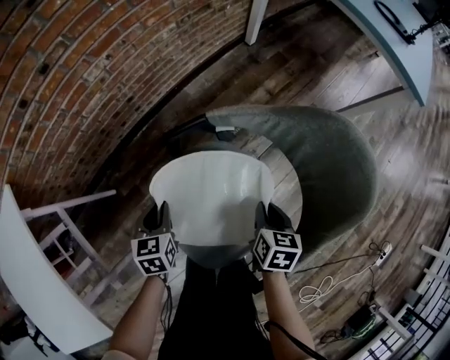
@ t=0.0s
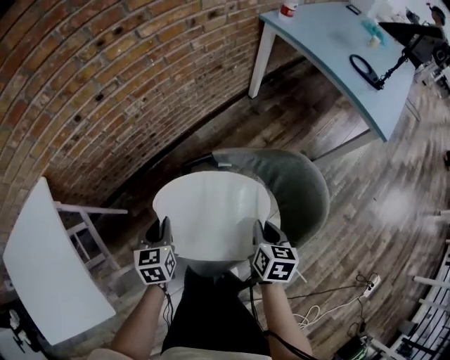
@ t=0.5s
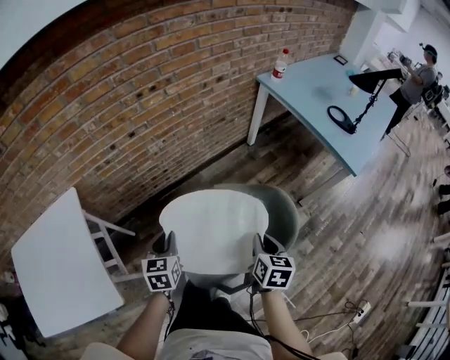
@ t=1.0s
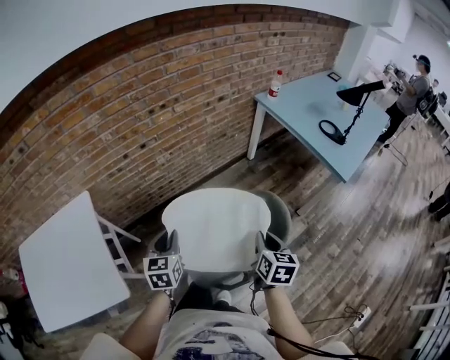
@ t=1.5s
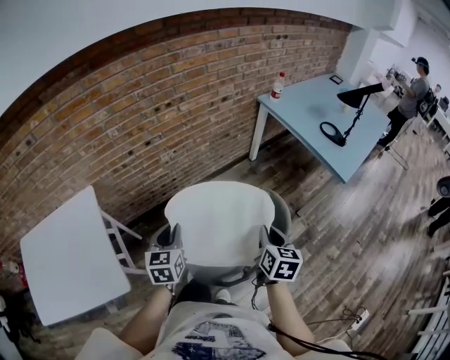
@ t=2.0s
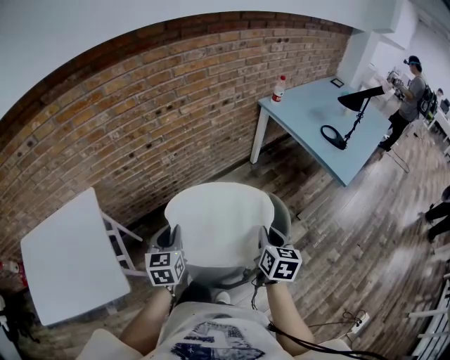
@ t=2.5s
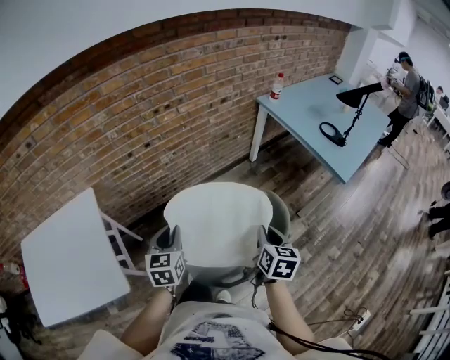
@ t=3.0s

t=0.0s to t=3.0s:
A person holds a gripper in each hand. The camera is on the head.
t=0.0s to t=1.5s: The two grippers go about 40 cm upward. The right gripper swivels roughly 20 degrees. Meanwhile the left gripper swivels some 20 degrees.
t=1.5s to t=3.0s: The grippers stay close to where they were, moving slightly.

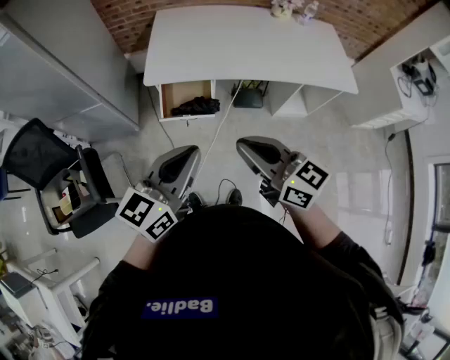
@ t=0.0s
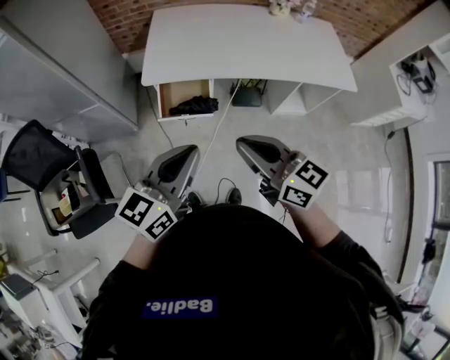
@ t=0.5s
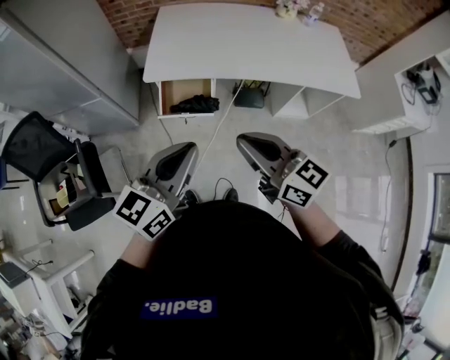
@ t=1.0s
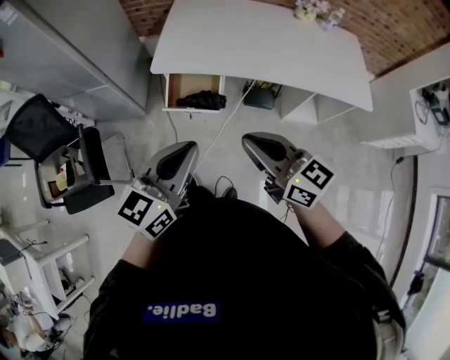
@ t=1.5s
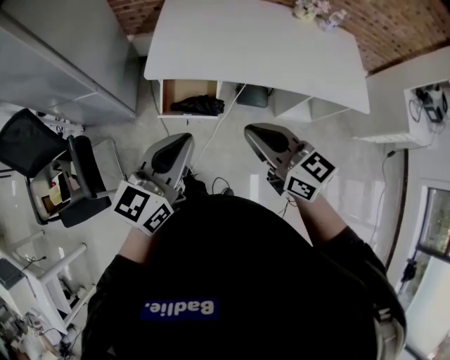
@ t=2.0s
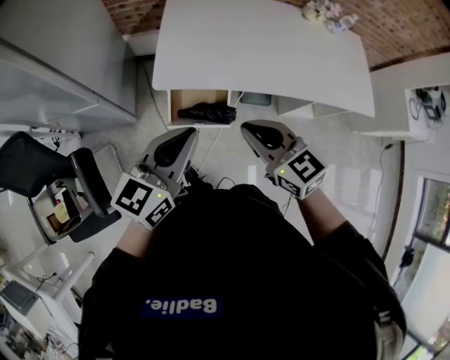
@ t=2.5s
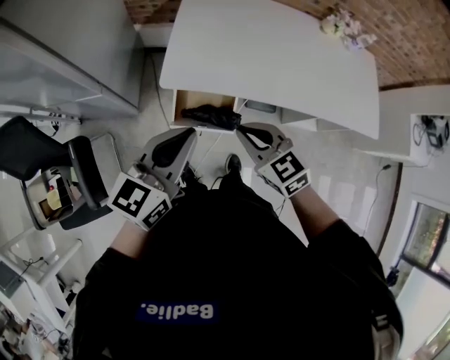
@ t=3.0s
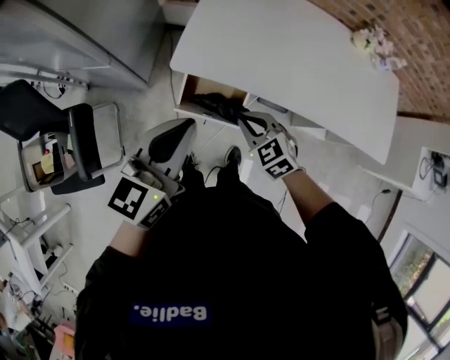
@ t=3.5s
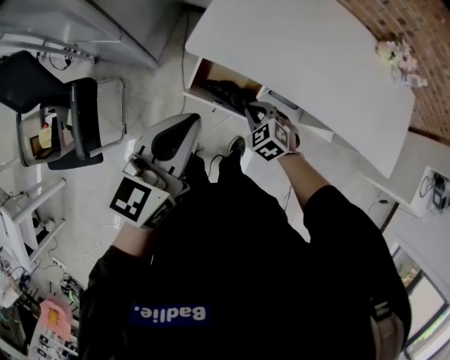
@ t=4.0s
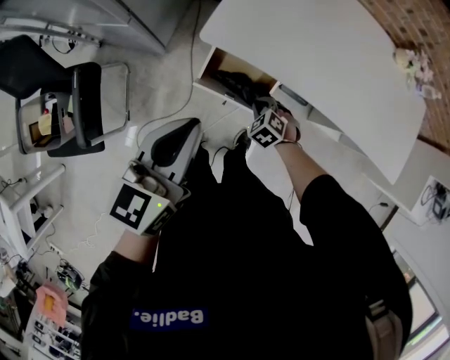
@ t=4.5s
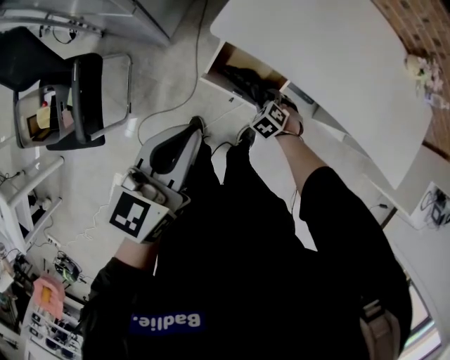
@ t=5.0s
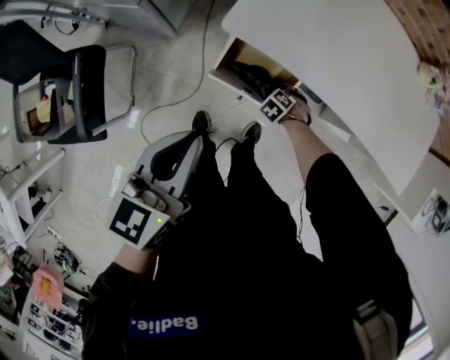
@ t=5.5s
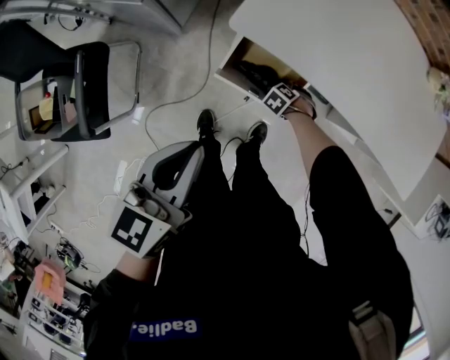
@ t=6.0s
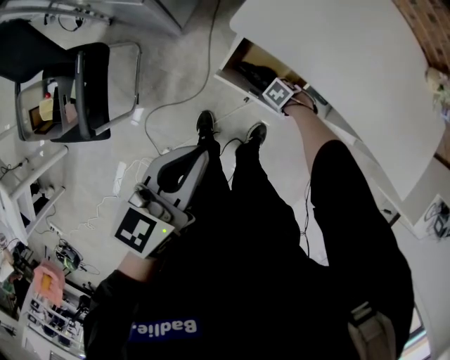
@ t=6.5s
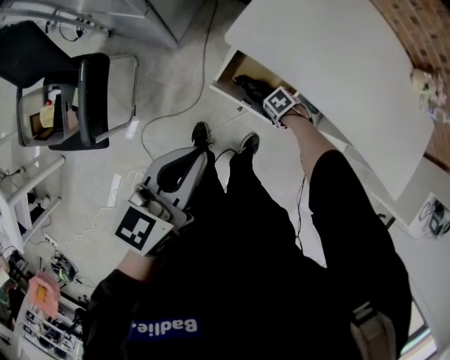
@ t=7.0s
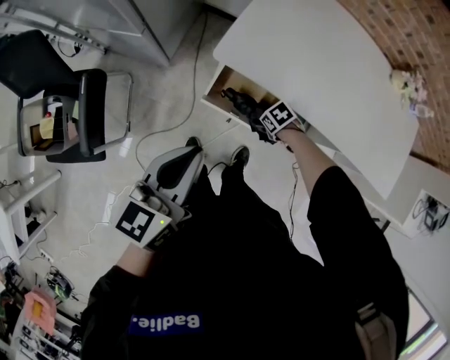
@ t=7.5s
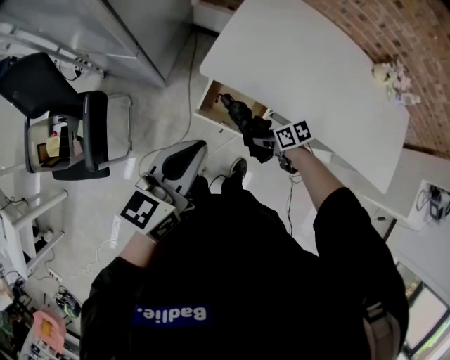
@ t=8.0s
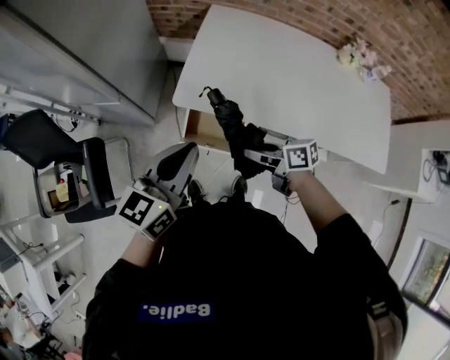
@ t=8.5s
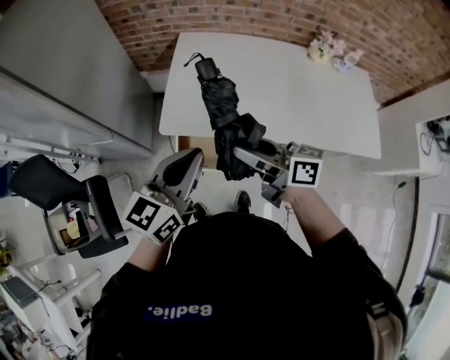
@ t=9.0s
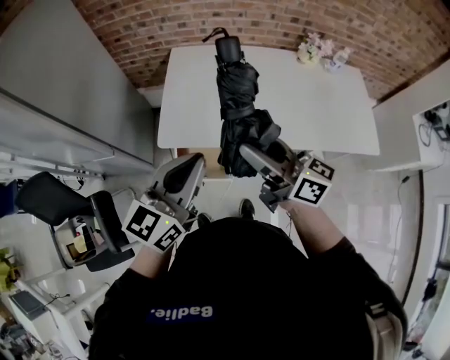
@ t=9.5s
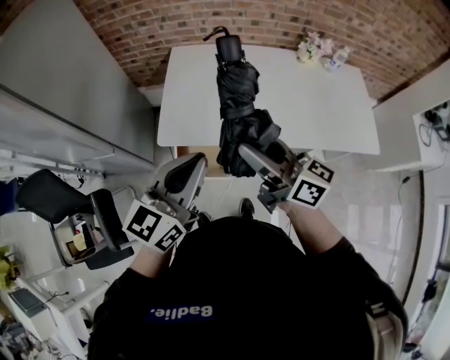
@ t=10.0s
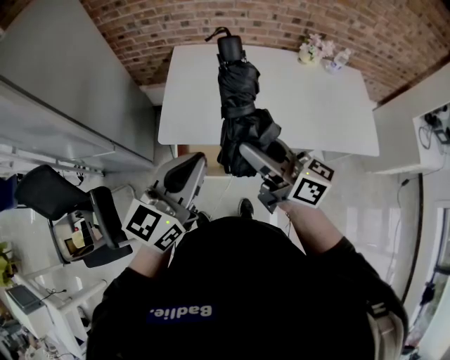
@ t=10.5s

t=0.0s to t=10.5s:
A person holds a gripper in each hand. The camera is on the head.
t=0.0s to t=2.0s: Both grippers travel together forward, roughly 10 cm.
t=2.0s to t=4.0s: The right gripper is displaced downward and forward by some 35 cm, and points its fingers about 50 degrees further downward. The left gripper moves forward and to the left, roughly 15 cm.
t=4.0s to t=6.5s: The right gripper shifts roughly 25 cm downward, changes its angle by some 40 degrees, and opens its fingers, while the left gripper is displaced downward by approximately 10 cm.
t=6.5s to t=8.5s: The right gripper is displaced upward by approximately 40 cm, and tilts its fingers approximately 60 degrees upward. The left gripper moves upward, roughly 15 cm, and swivels roughly 20 degrees.
t=8.5s to t=10.5s: The right gripper travels upward by roughly 25 cm, and points its fingers some 30 degrees further upward. The left gripper travels to the right and upward by some 15 cm.

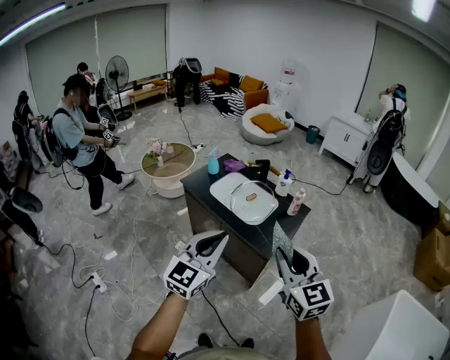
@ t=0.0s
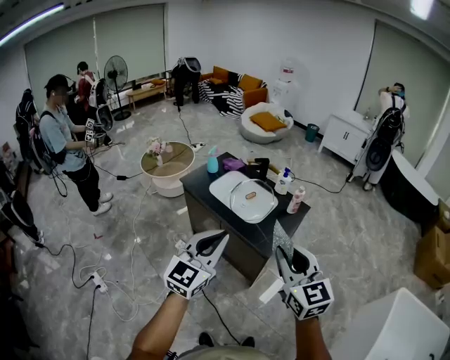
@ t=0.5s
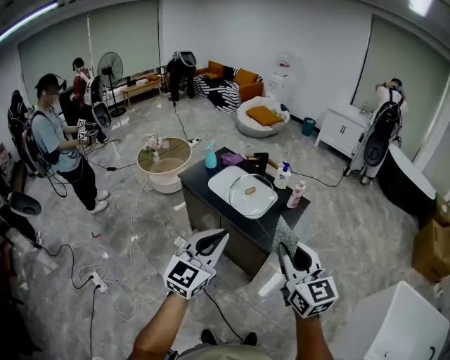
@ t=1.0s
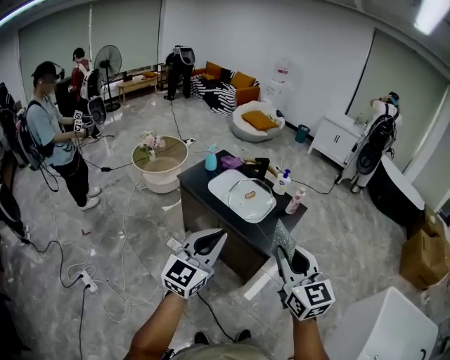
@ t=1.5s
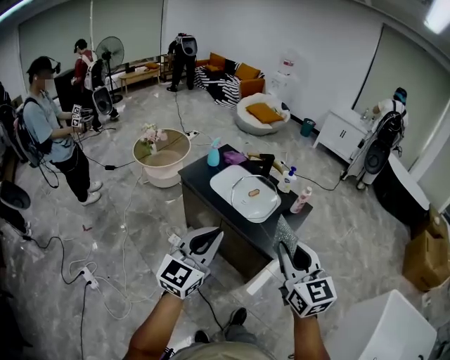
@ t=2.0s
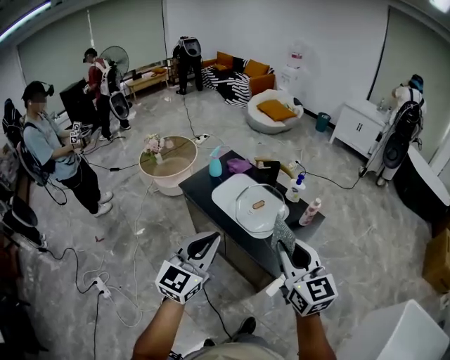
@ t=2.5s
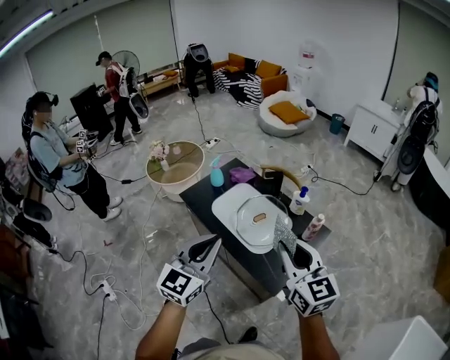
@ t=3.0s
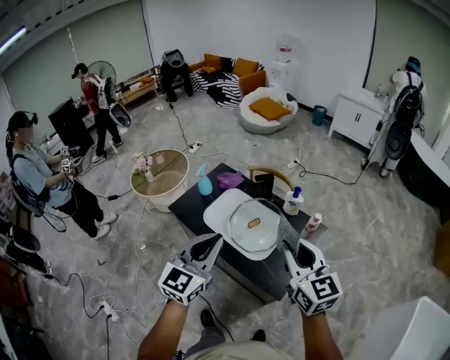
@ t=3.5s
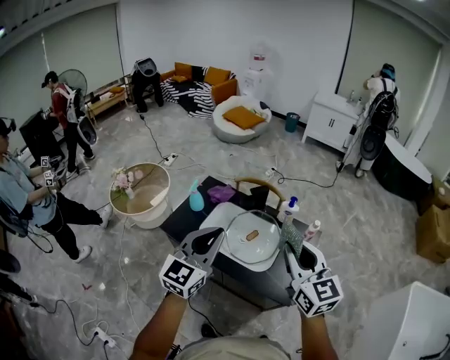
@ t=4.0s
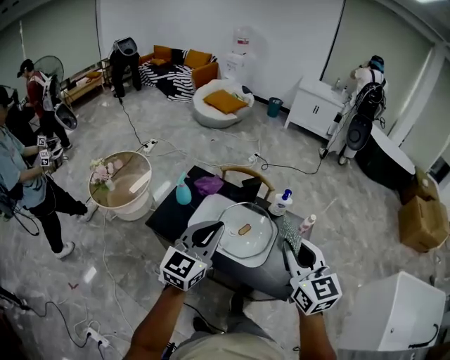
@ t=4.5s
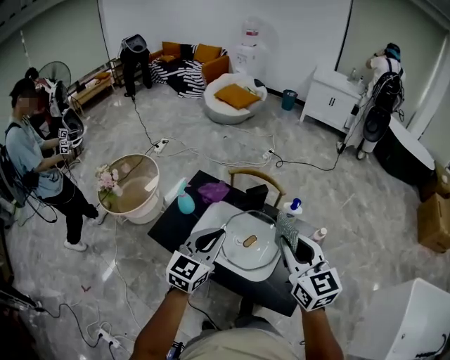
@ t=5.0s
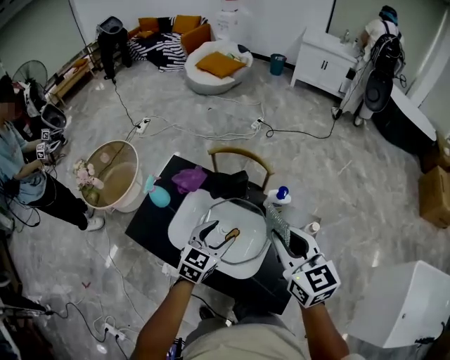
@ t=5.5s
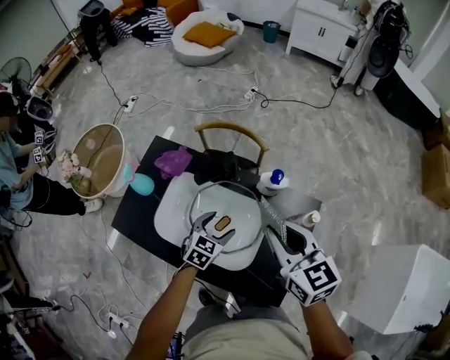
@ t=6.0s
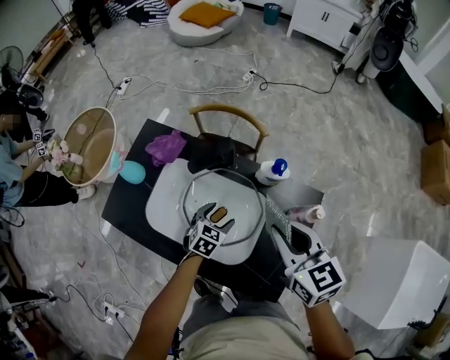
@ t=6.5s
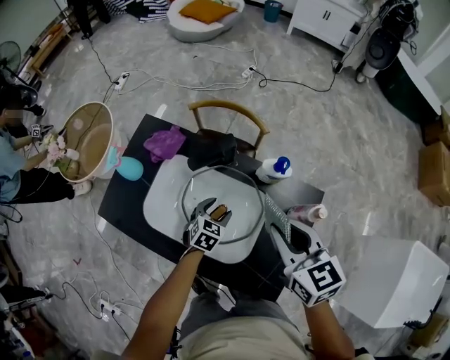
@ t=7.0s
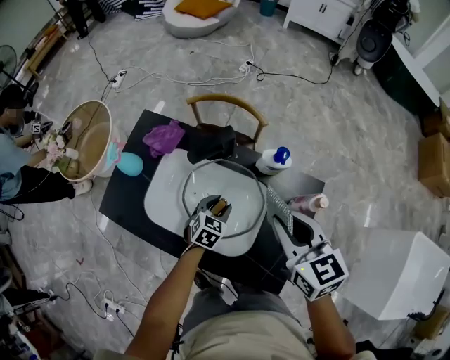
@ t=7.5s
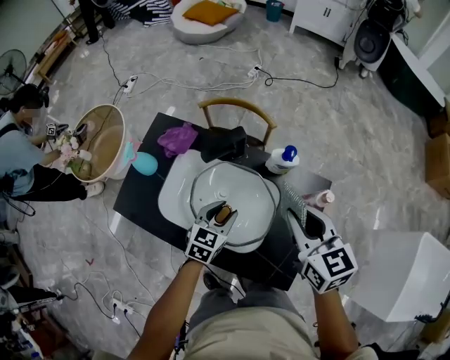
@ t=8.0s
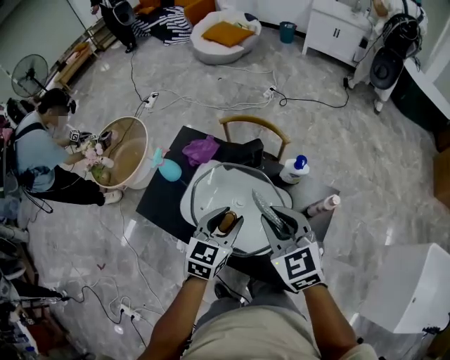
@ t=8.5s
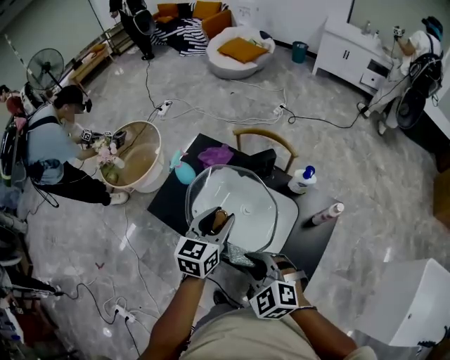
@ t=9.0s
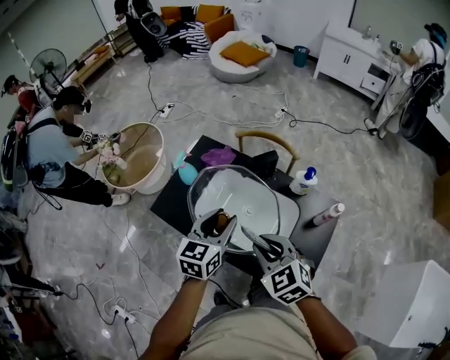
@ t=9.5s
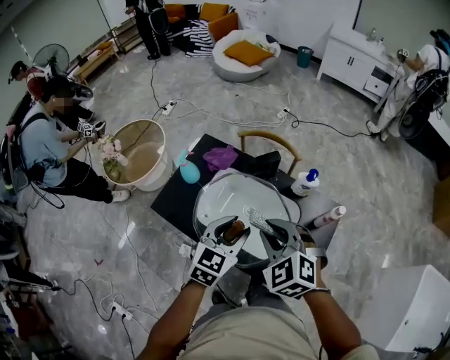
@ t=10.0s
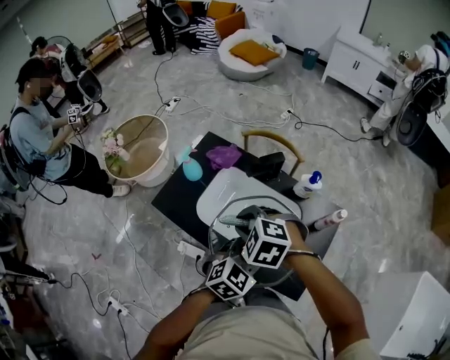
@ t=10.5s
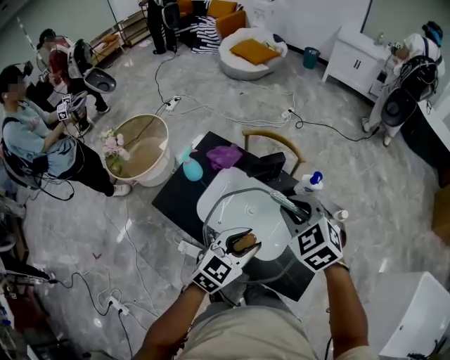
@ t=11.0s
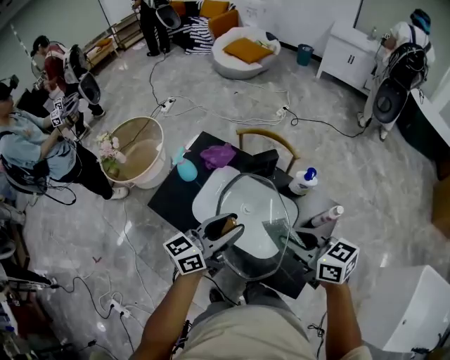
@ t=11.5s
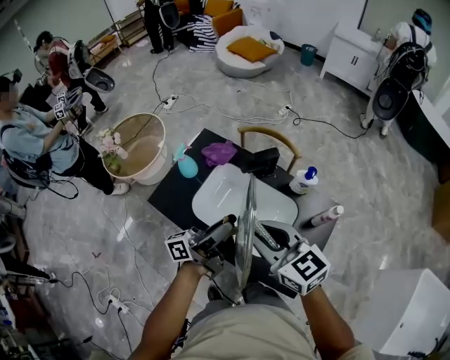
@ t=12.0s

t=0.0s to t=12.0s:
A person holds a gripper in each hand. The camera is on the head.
t=0.0s to t=2.0s: Both grippers move to the left, approximately 10 cm.
t=2.0s to t=4.0s: Both grippers travel together forward, roughly 30 cm.
t=4.0s to t=6.0s: The left gripper travels downward and forward by some 50 cm, tips its fingers downward by some 40 degrees, and opens its fingers. Meanwhile the right gripper moves forward and downward, approximately 30 cm, and swivels some 20 degrees.
t=6.0s to t=8.0s: The left gripper reaches roughly 10 cm downward, then returns, and closes.
t=8.0s to t=10.0s: The left gripper heads upward, covering roughly 20 cm; the right gripper moves to the left, roughly 15 cm, and rotates around the line of its fingers by about 50 degrees, counterclockwise from behind.
t=10.0s to t=12.0s: The right gripper goes left and right, about 15 cm each way, reversing 2 times, and changes its angle by some 50 degrees, while the left gripper travels to the right and back again, roughly 5 cm each way, and points its fingers about 50 degrees further upward.

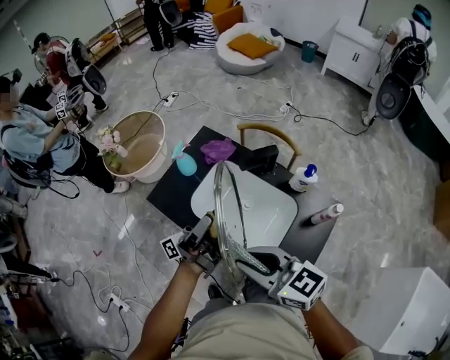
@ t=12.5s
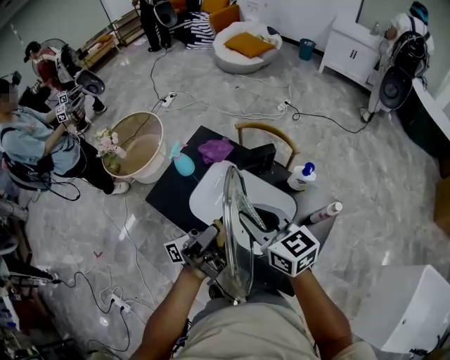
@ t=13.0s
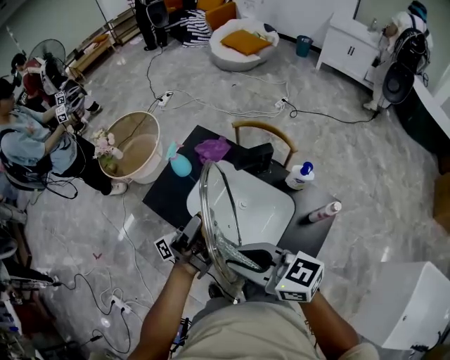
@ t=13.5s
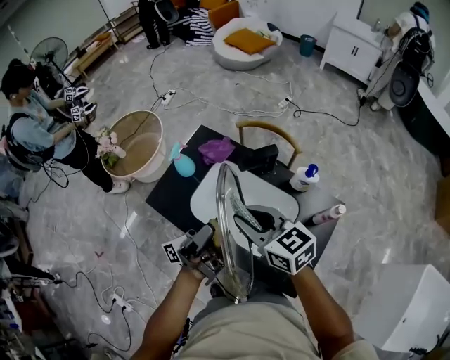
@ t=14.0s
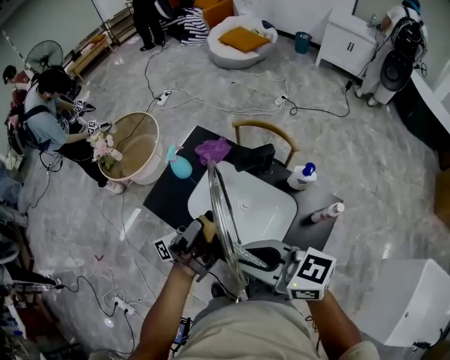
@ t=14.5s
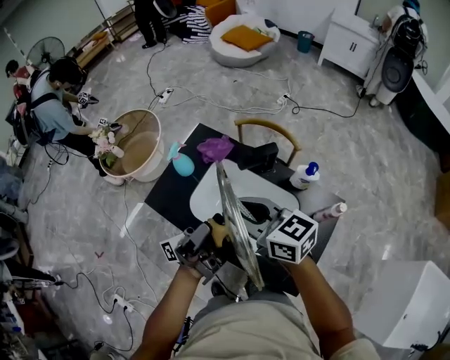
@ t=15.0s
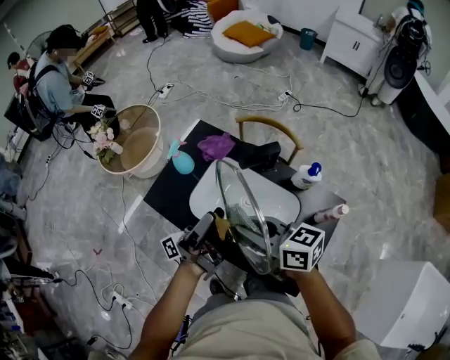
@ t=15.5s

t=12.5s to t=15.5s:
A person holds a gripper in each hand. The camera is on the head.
t=12.5s to t=14.0s: The right gripper swings forward and backward, approximately 10 cm each way, with 2 reversals.
t=14.0s to t=15.5s: The left gripper shifts by roughly 5 cm, while the right gripper reaches about 10 cm backward, then returns, and changes its angle by about 20 degrees.
